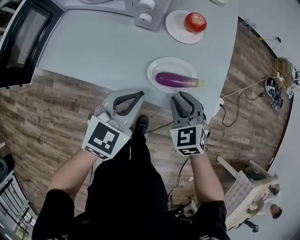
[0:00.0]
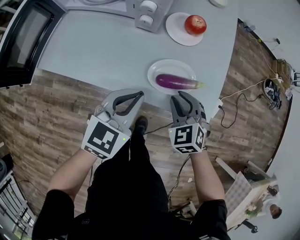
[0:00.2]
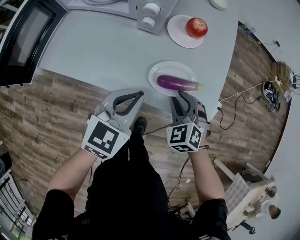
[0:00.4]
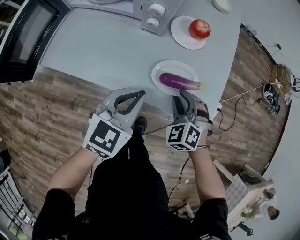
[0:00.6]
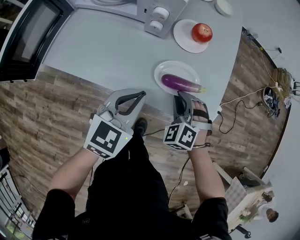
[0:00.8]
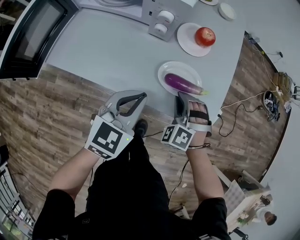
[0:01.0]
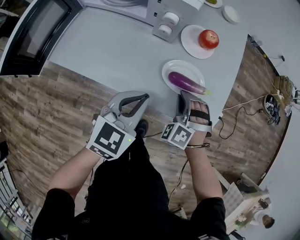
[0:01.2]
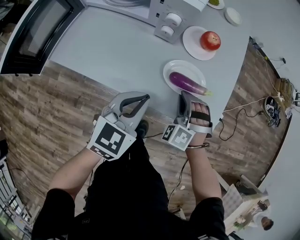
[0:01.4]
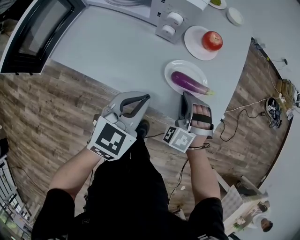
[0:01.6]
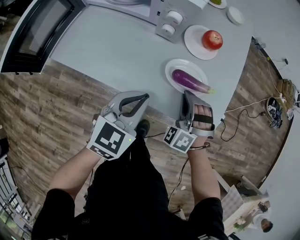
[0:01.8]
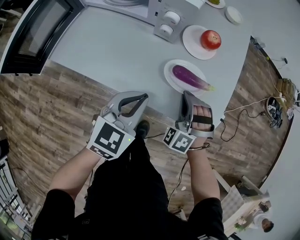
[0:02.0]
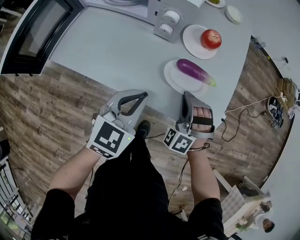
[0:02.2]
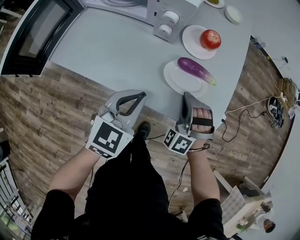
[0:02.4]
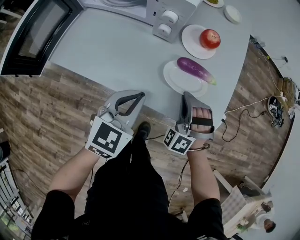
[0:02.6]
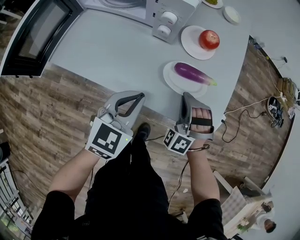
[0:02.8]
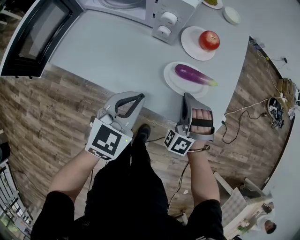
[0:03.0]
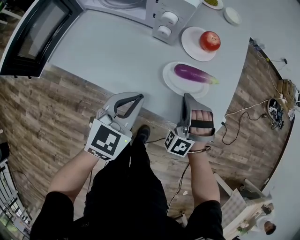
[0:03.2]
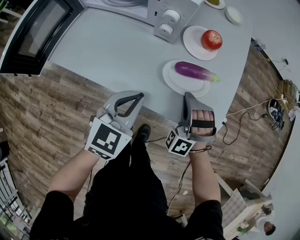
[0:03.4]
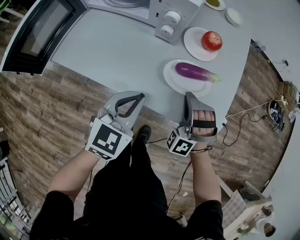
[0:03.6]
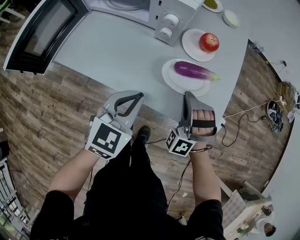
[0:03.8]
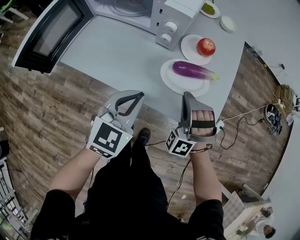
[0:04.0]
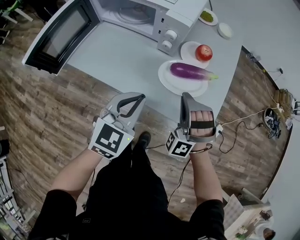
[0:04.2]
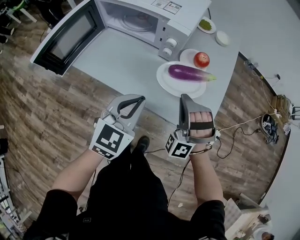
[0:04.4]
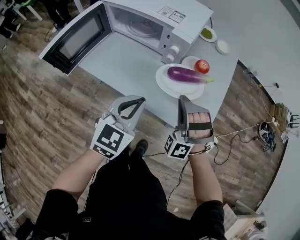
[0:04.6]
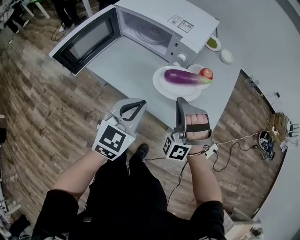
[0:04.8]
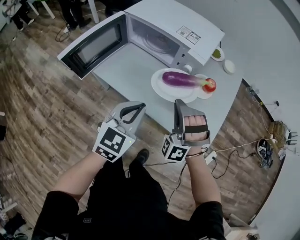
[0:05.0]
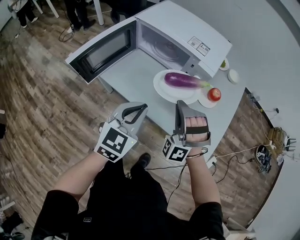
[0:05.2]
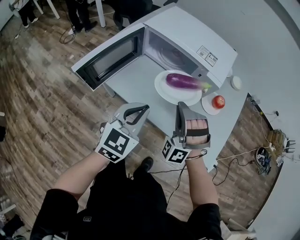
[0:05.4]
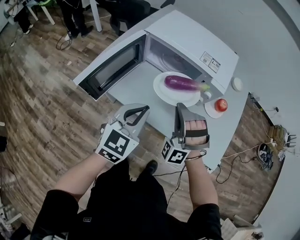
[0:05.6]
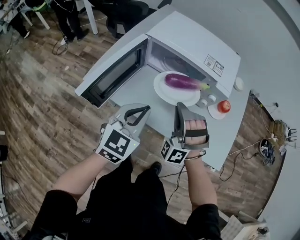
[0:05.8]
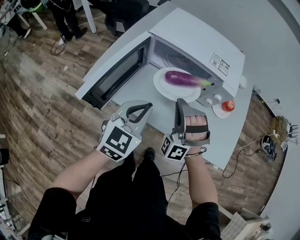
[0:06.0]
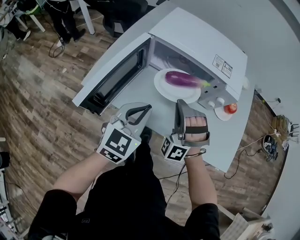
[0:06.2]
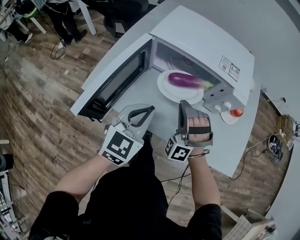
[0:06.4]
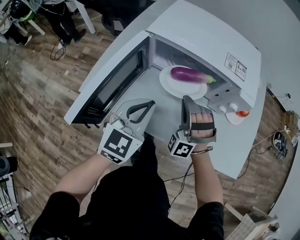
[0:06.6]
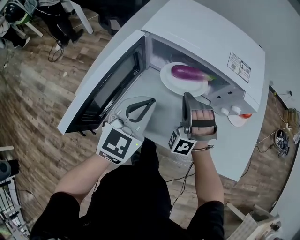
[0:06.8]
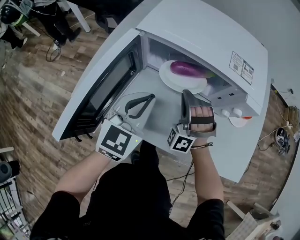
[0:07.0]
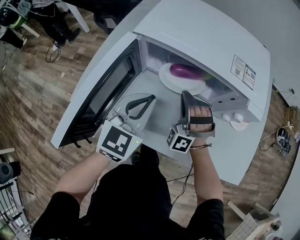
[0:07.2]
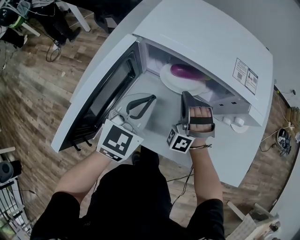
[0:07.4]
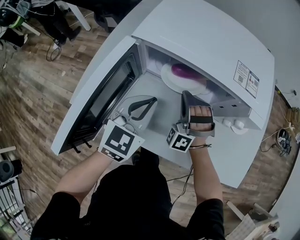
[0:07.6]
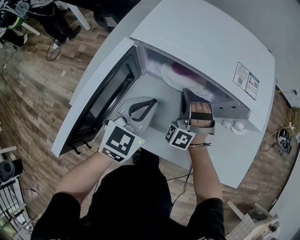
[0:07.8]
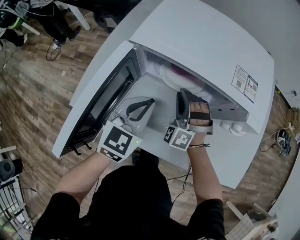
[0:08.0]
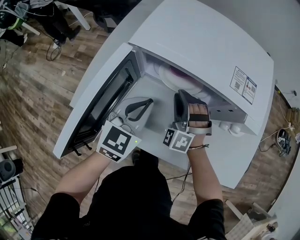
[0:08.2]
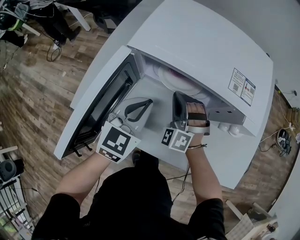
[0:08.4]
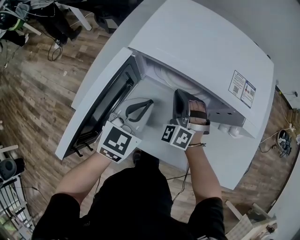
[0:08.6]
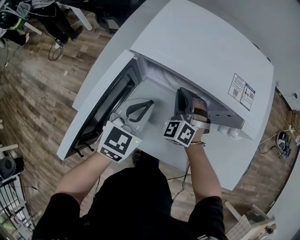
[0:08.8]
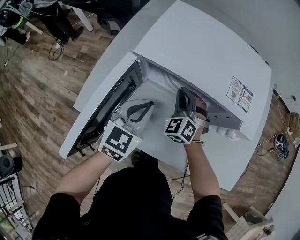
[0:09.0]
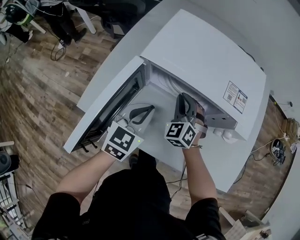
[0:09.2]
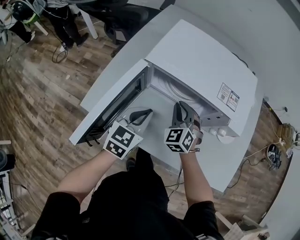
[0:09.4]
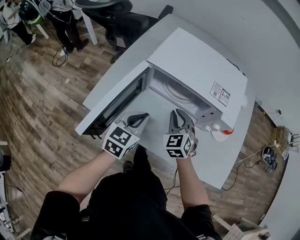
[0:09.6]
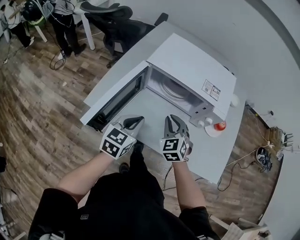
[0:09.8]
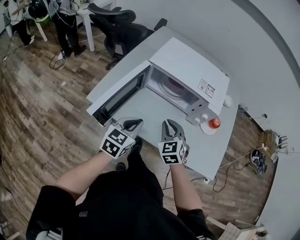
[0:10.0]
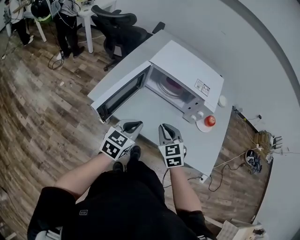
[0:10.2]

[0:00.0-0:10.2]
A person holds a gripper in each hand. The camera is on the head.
0:00.0 to 0:01.4: The right gripper ends up about 5 cm from where it was, and rotates around the line of its fingers by approximately 40 degrees, counterclockwise from behind.
0:01.4 to 0:03.0: The grippers move only a little.
0:03.0 to 0:04.4: Both grippers travel together upward, roughly 15 cm.
0:04.4 to 0:05.8: The two grippers go roughly 25 cm to the left.
0:05.8 to 0:07.2: Both grippers move forward and downward, some 20 cm.
0:07.2 to 0:08.8: The right gripper heads forward, covering roughly 5 cm, and swivels about 30 degrees.
0:08.8 to 0:10.2: The left gripper travels backward by approximately 20 cm. Meanwhile the right gripper goes about 30 cm backward and upward, and rotates approximately 40 degrees.

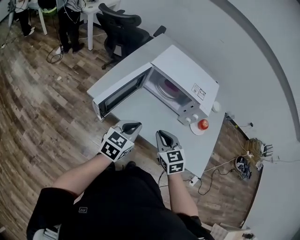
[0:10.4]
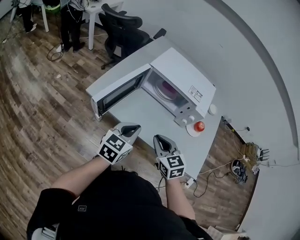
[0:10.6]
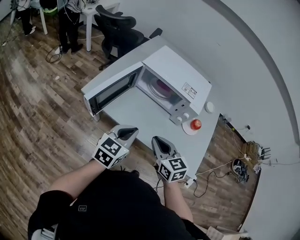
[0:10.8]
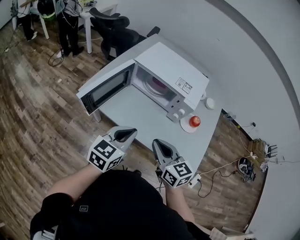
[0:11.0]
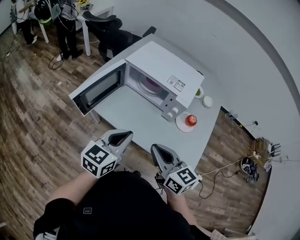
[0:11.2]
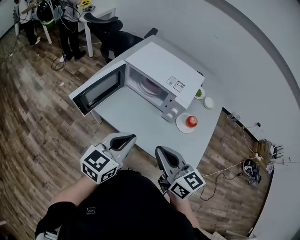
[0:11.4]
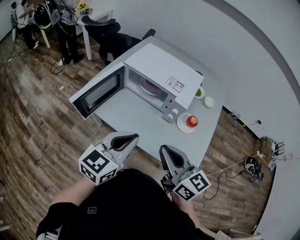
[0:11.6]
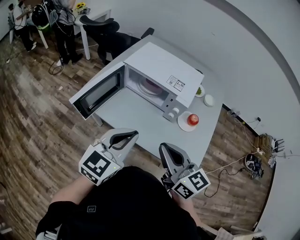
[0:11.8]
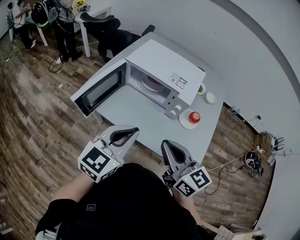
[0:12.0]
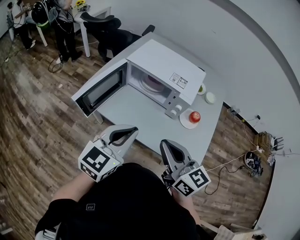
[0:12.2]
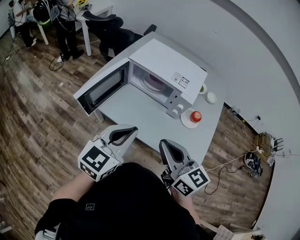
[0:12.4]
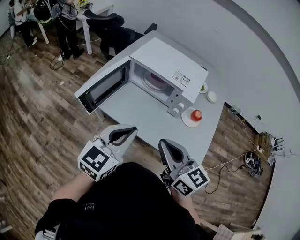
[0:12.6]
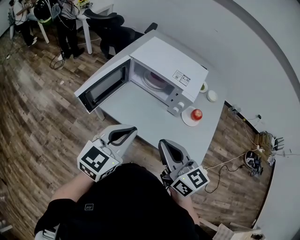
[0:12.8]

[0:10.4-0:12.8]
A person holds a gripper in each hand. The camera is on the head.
0:10.4 to 0:11.6: The right gripper is displaced upward, to the right and backward by about 25 cm, and changes its angle by roughly 40 degrees; the left gripper goes roughly 20 cm to the right, upward and backward.
0:11.6 to 0:12.8: There are only small adjustments of the grippers.

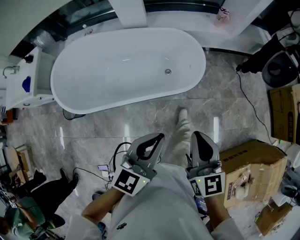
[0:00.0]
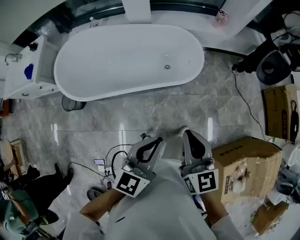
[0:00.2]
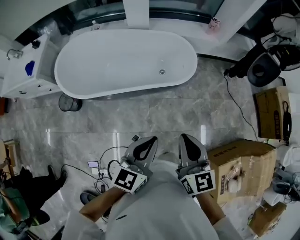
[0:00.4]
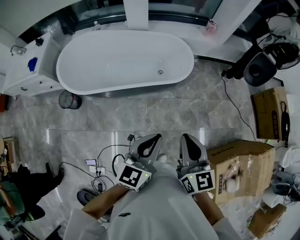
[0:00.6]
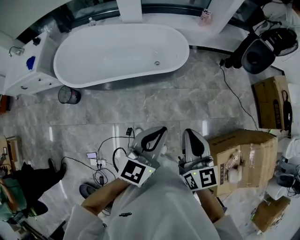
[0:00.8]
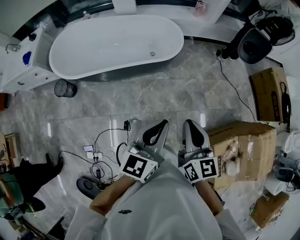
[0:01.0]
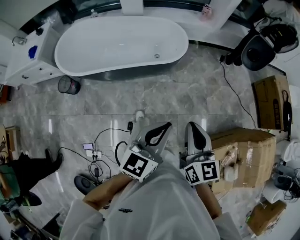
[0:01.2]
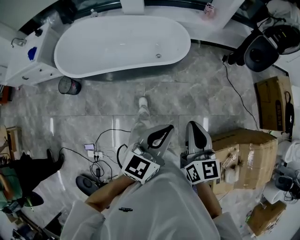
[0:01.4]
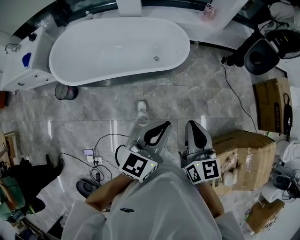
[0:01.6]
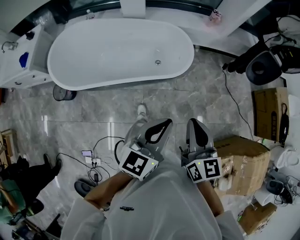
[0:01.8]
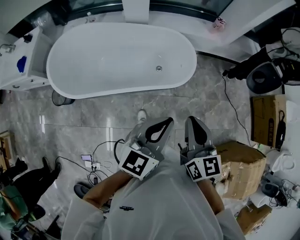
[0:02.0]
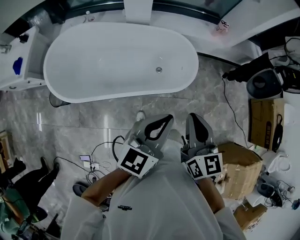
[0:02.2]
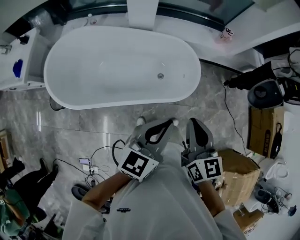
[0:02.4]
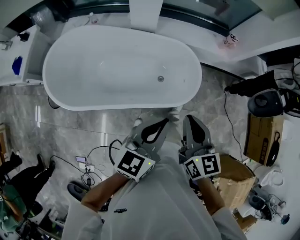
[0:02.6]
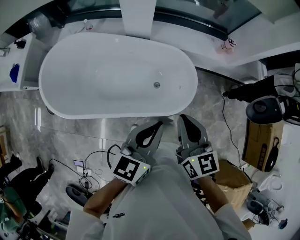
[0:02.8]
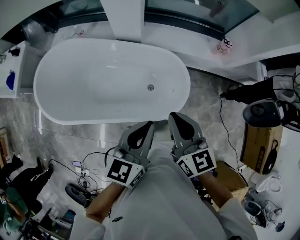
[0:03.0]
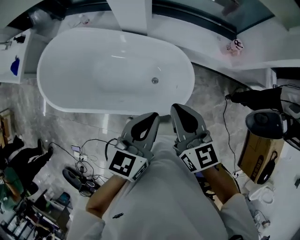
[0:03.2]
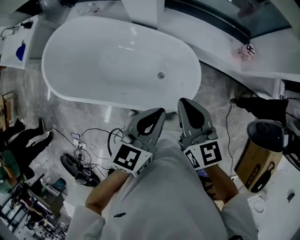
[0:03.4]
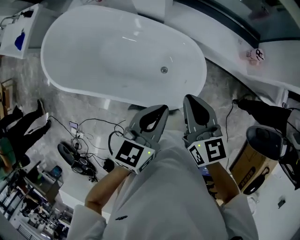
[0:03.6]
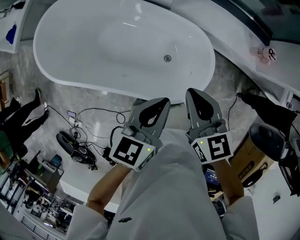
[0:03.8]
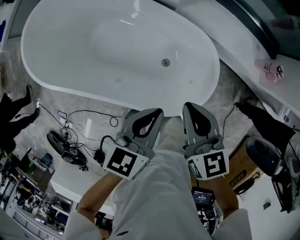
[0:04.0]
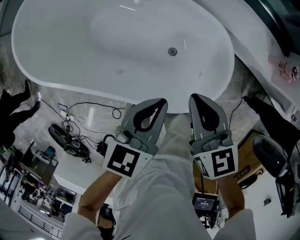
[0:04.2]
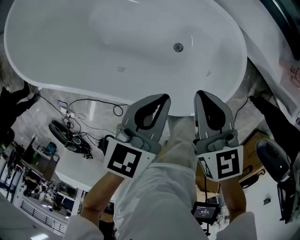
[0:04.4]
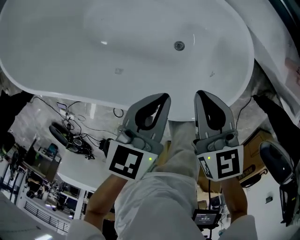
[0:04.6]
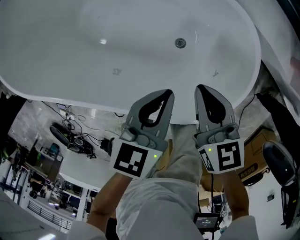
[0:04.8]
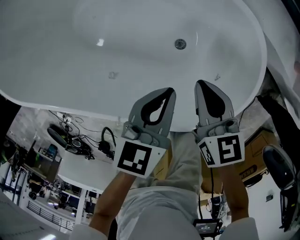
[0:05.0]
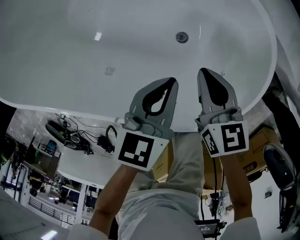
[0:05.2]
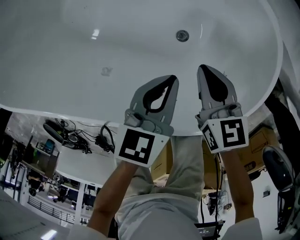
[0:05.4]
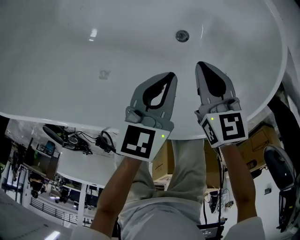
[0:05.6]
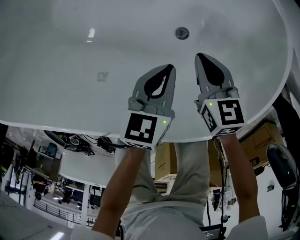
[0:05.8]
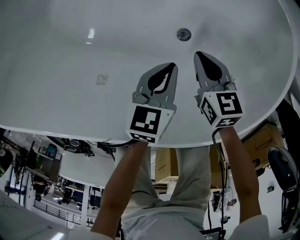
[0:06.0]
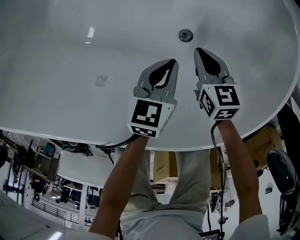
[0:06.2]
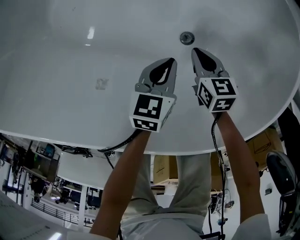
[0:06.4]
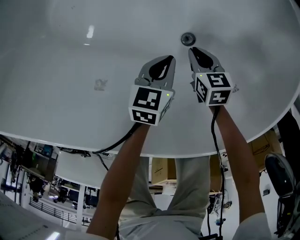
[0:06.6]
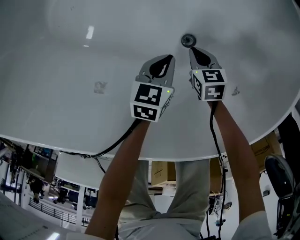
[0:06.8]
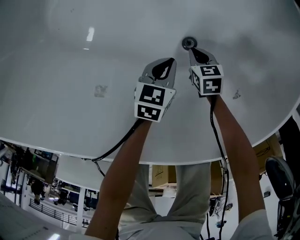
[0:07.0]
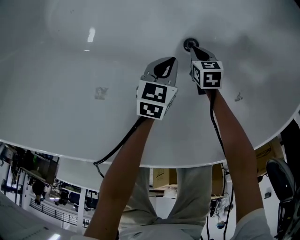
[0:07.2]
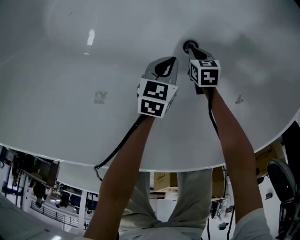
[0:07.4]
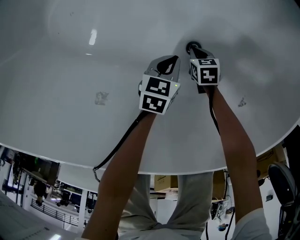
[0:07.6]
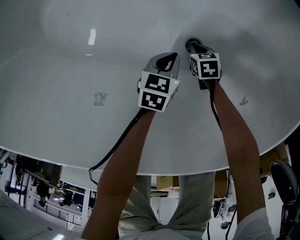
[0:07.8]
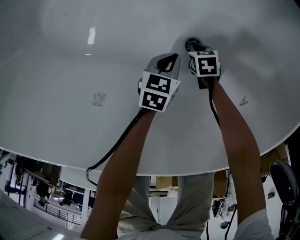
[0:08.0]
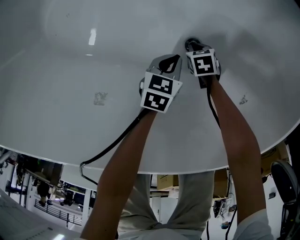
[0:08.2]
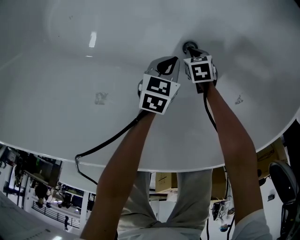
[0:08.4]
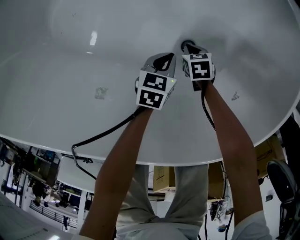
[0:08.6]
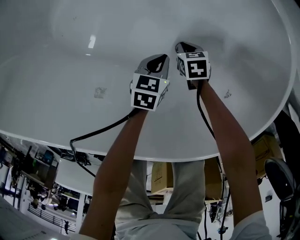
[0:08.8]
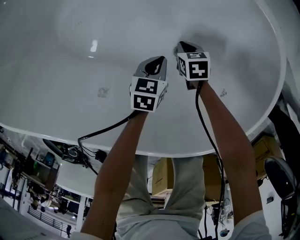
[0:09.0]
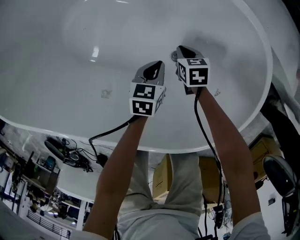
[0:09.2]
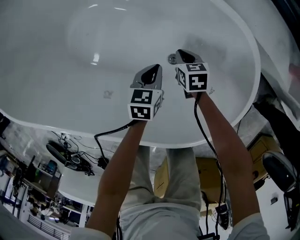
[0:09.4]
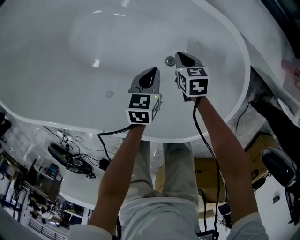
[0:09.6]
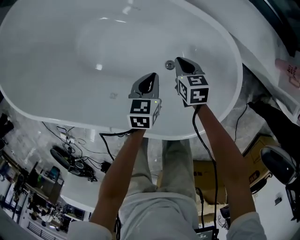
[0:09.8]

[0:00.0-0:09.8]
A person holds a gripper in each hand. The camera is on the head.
0:00.0 to 0:01.4: The right gripper travels backward by roughly 25 cm; the left gripper shifts approximately 30 cm backward and to the right.
0:01.4 to 0:02.8: Both grippers are carried forward, about 50 cm.
0:02.8 to 0:04.2: The grippers both shift downward and forward by roughly 35 cm. The right gripper swivels roughly 30 degrees; the left gripper swivels about 30 degrees.
0:04.2 to 0:05.6: The two grippers go about 35 cm downward.
0:05.6 to 0:07.0: Both grippers move downward, some 25 cm. The right gripper changes its angle by approximately 20 degrees.
0:07.0 to 0:08.4: The right gripper is displaced downward by some 5 cm.
0:08.4 to 0:09.8: Both grippers move upward, about 35 cm. The right gripper changes its angle by some 30 degrees.

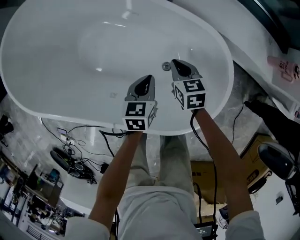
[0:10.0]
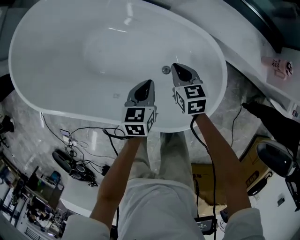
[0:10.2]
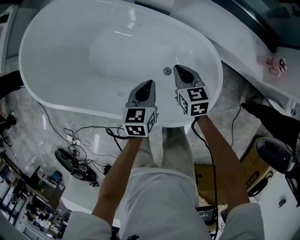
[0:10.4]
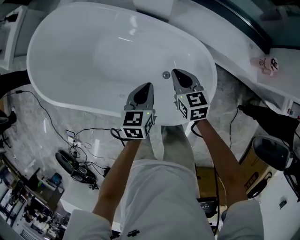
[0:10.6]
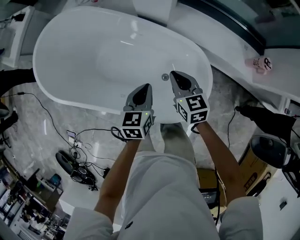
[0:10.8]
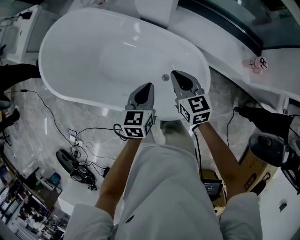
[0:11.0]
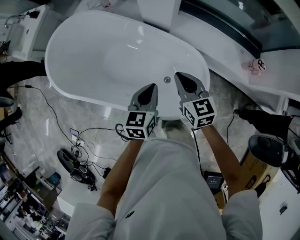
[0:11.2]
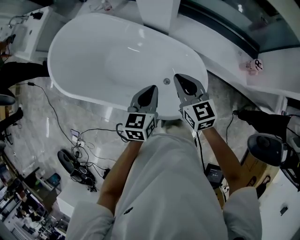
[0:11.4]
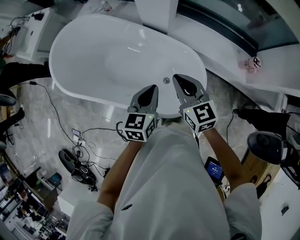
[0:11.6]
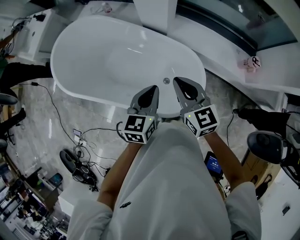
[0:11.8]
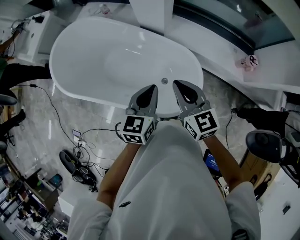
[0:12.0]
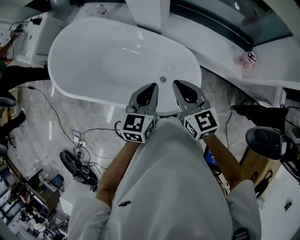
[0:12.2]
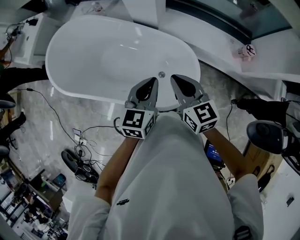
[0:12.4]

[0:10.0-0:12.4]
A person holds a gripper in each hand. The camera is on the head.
0:10.0 to 0:11.2: Both grippers travel together upward, approximately 35 cm. The right gripper swivels approximately 20 degrees.
0:11.2 to 0:12.4: The left gripper is displaced upward and to the right by roughly 10 cm, while the right gripper goes approximately 10 cm upward and backward.
